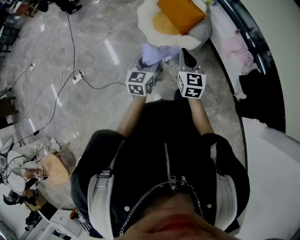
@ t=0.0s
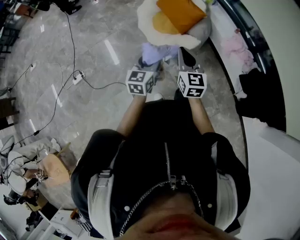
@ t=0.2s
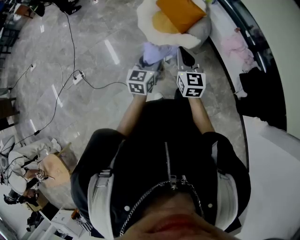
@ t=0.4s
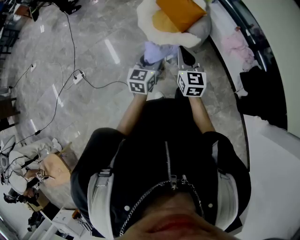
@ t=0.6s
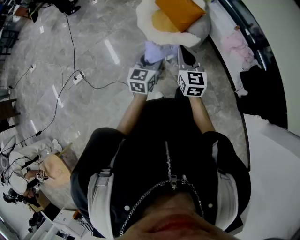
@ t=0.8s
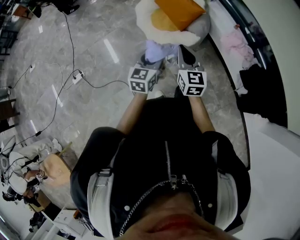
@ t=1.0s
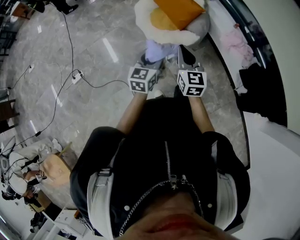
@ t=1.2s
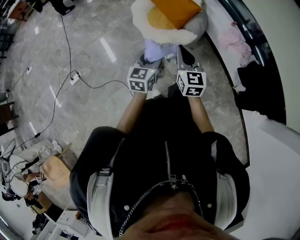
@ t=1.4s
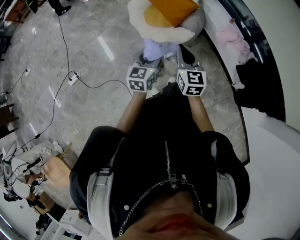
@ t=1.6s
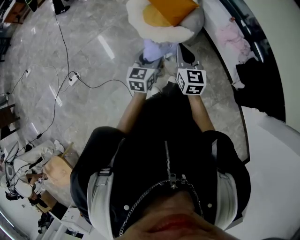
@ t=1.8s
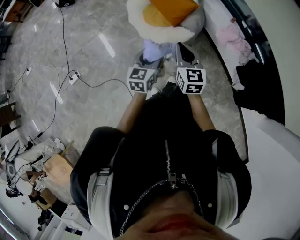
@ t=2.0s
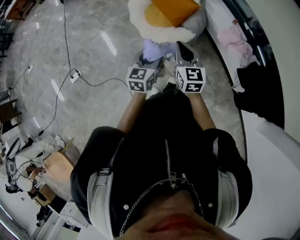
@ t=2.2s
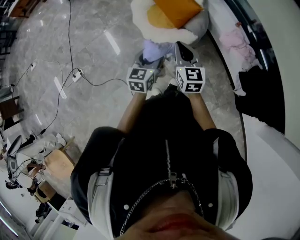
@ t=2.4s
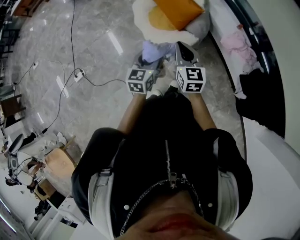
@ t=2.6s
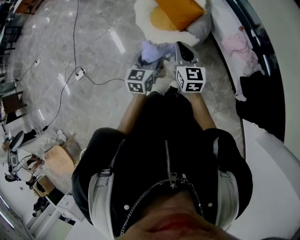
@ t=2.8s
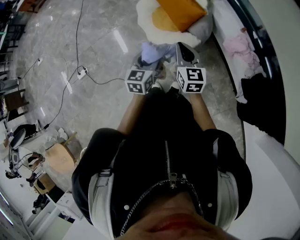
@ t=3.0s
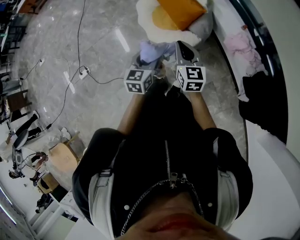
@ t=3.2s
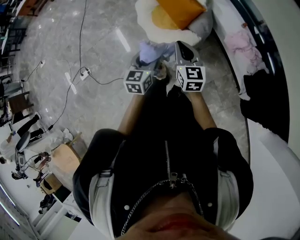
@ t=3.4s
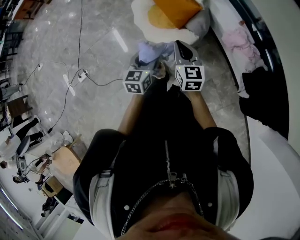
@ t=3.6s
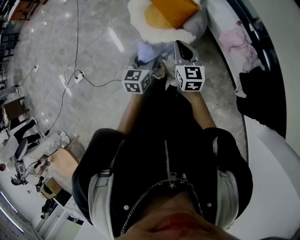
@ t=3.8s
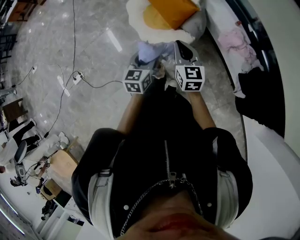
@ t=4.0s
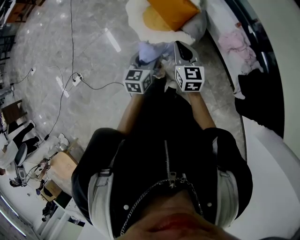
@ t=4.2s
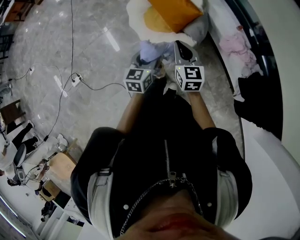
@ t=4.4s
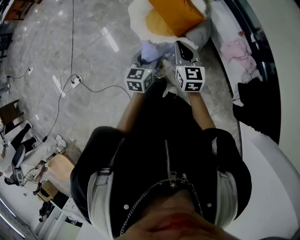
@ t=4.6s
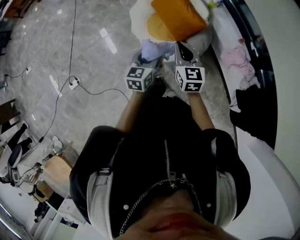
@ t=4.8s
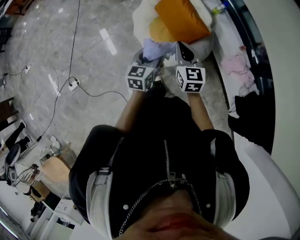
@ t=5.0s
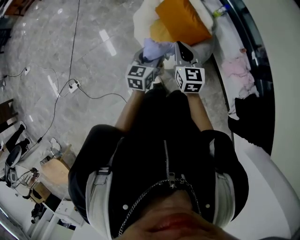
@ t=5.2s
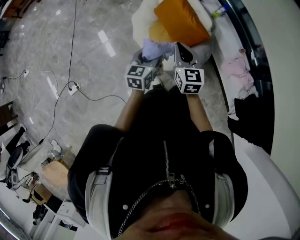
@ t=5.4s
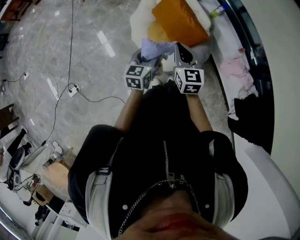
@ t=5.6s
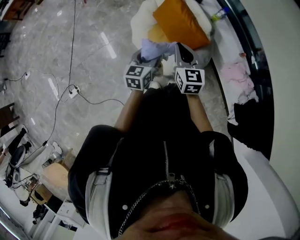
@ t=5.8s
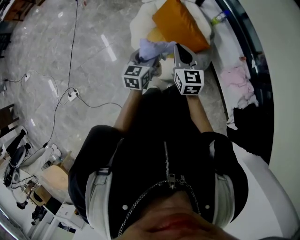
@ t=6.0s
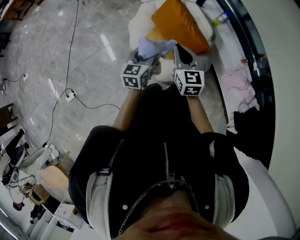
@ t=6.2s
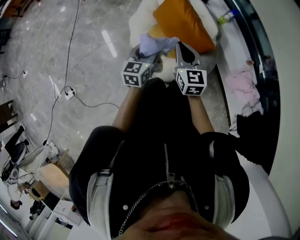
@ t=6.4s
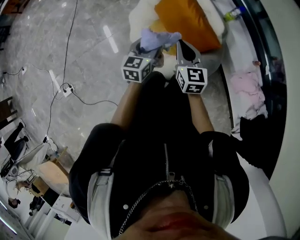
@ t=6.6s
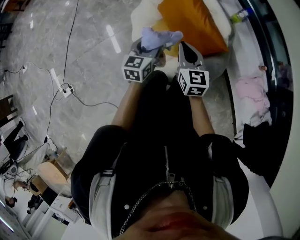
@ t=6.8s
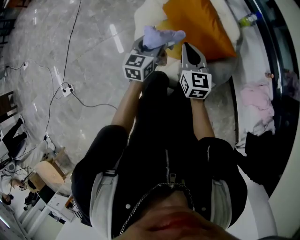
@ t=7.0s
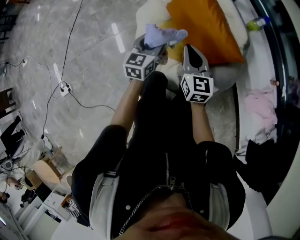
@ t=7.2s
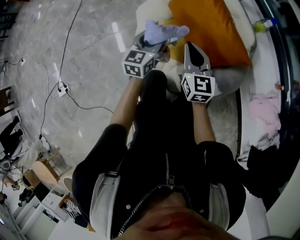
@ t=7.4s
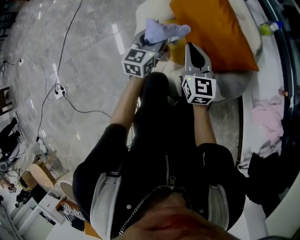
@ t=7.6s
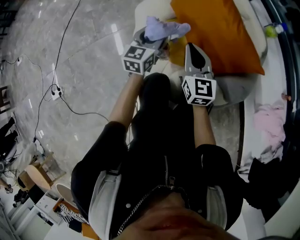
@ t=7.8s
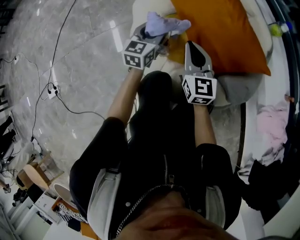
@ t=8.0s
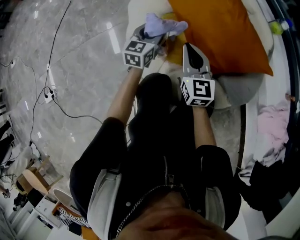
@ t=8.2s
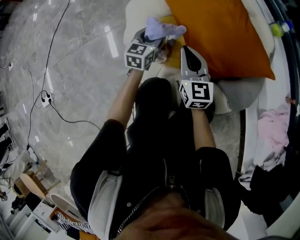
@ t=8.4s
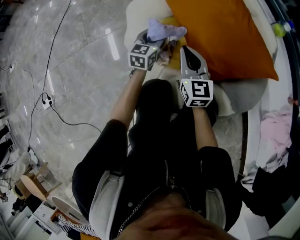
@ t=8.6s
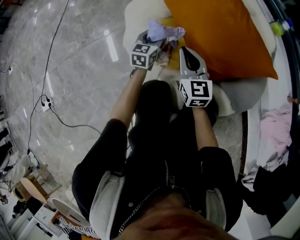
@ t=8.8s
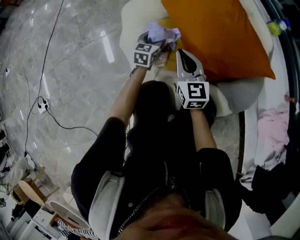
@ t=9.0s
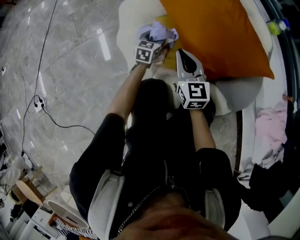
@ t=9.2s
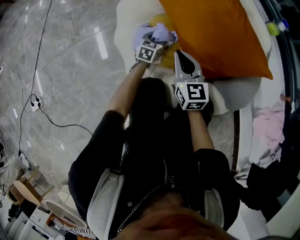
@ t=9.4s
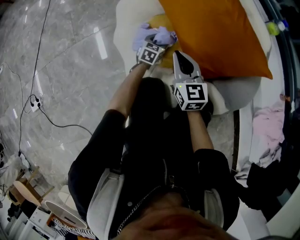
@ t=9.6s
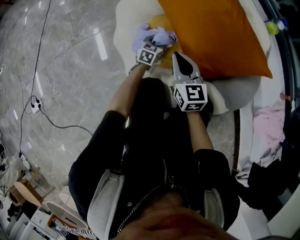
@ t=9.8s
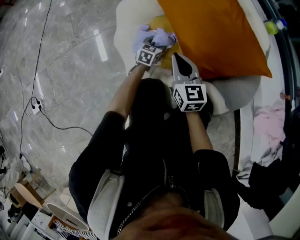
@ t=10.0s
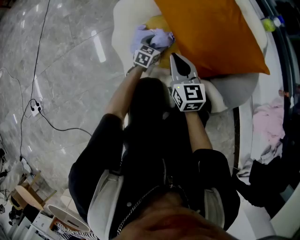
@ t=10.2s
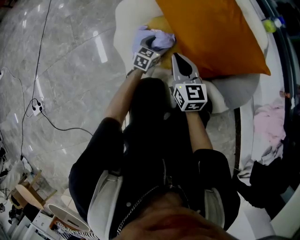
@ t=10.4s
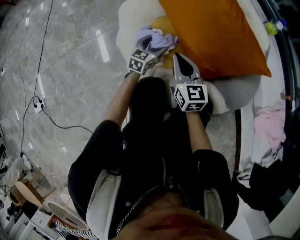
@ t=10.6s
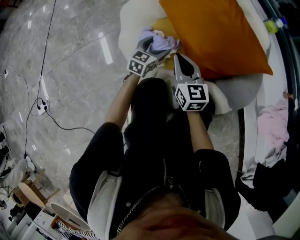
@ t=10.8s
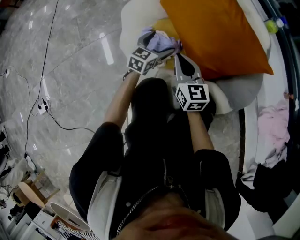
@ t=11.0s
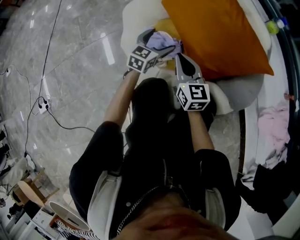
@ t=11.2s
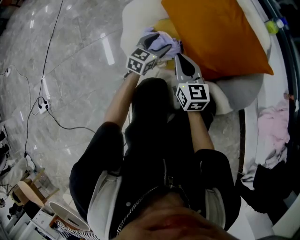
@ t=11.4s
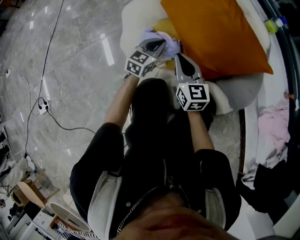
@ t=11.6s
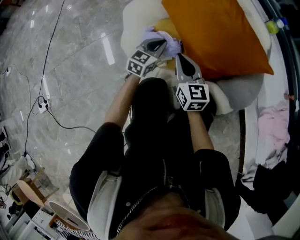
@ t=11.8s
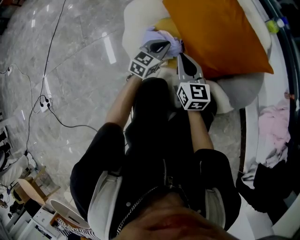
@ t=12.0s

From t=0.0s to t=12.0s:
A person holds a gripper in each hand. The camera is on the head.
From t=0.0s to t=1.6s: The grippers move only a little.
From t=1.6s to t=3.0s: Both grippers move forward and to the right, about 10 cm.
From t=3.0s to t=4.4s: The grippers both shift forward by some 10 cm.
From t=4.4s to t=6.0s: The grippers both shift forward by roughly 25 cm.
From t=6.0s to t=7.6s: The left gripper shifts roughly 40 cm downward and forward, while the right gripper travels downward by about 35 cm.
From t=7.6s to t=9.0s: The right gripper travels downward by some 15 cm. Meanwhile the left gripper goes about 25 cm downward.
From t=9.0s to t=10.4s: The left gripper changes place by roughly 5 cm.
From t=10.4s to t=12.0s: The left gripper heads upward, covering roughly 10 cm, and closes its fingers.

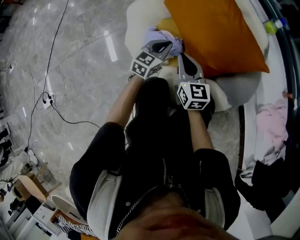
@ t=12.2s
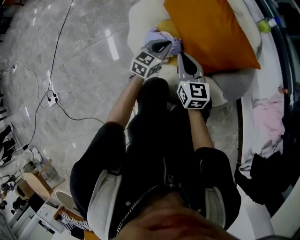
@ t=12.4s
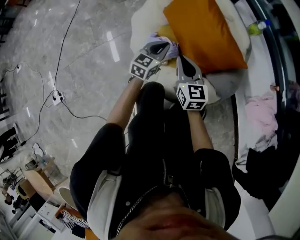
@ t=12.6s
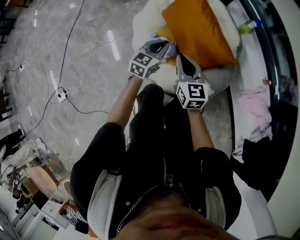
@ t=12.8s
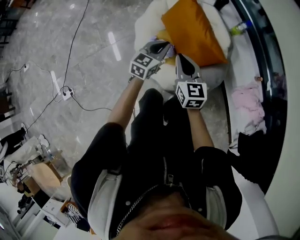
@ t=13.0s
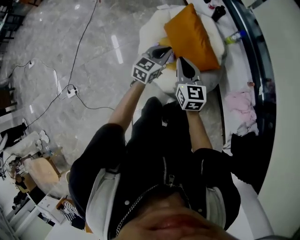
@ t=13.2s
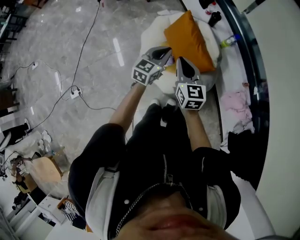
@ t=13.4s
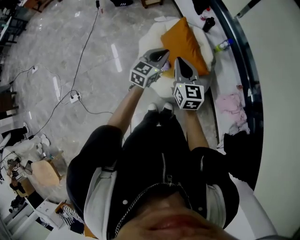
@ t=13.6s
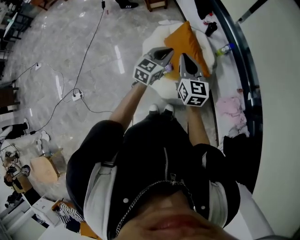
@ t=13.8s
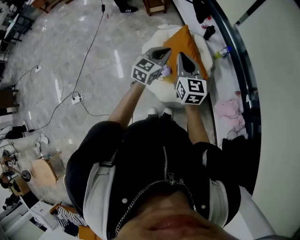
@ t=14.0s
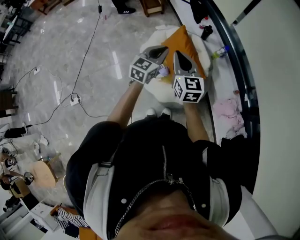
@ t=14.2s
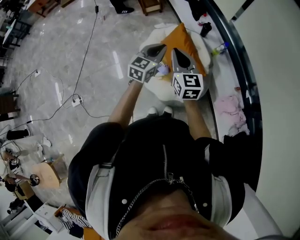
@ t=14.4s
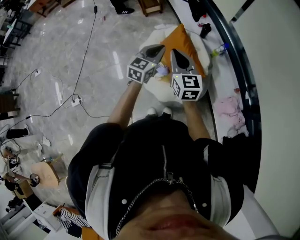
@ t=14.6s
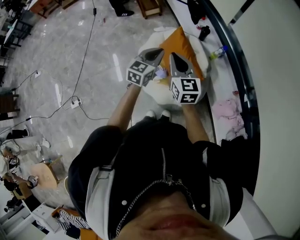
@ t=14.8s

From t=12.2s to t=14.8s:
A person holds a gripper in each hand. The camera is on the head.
From t=12.2s to t=13.4s: The two grippers go about 60 cm upward.
From t=13.4s to t=14.8s: The two grippers go approximately 10 cm upward.

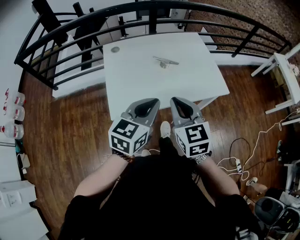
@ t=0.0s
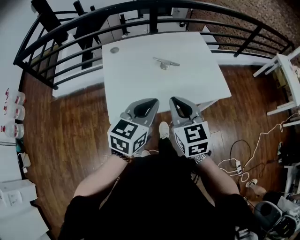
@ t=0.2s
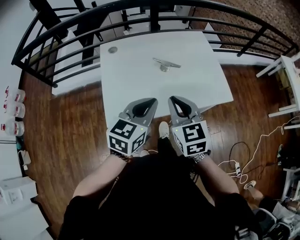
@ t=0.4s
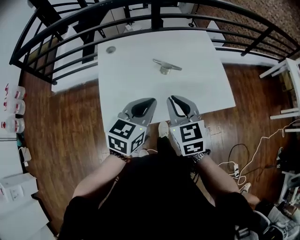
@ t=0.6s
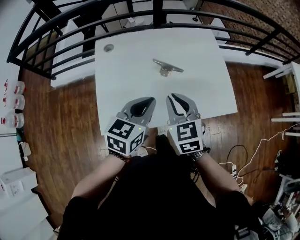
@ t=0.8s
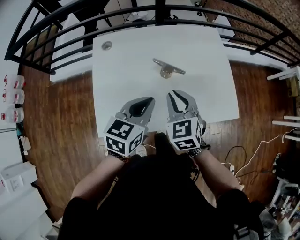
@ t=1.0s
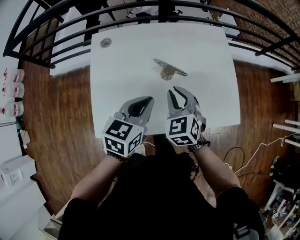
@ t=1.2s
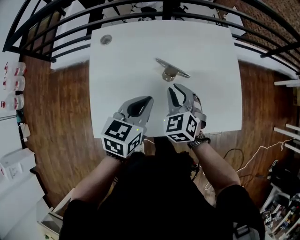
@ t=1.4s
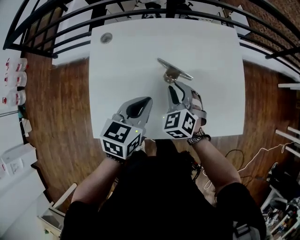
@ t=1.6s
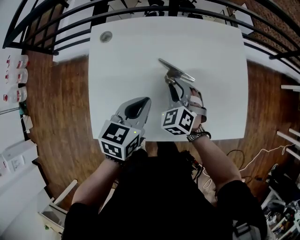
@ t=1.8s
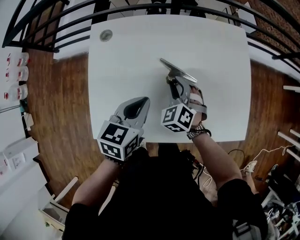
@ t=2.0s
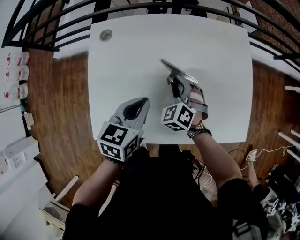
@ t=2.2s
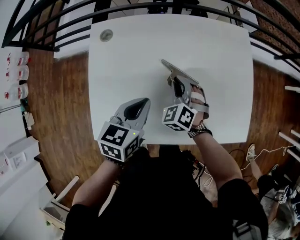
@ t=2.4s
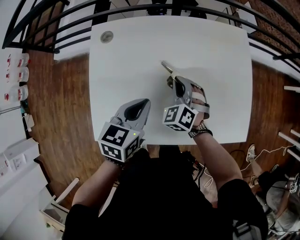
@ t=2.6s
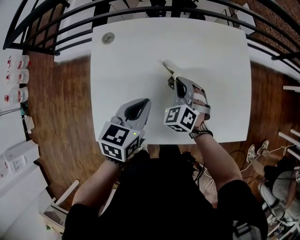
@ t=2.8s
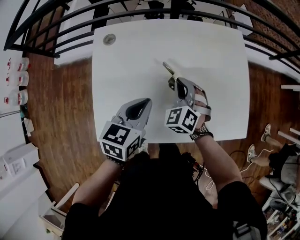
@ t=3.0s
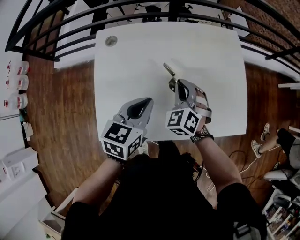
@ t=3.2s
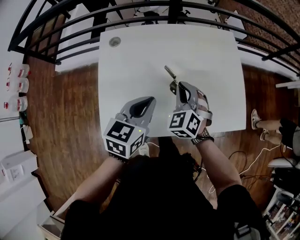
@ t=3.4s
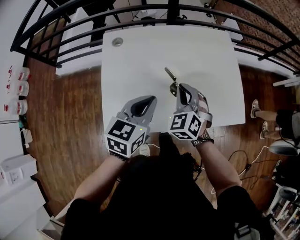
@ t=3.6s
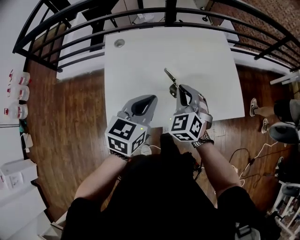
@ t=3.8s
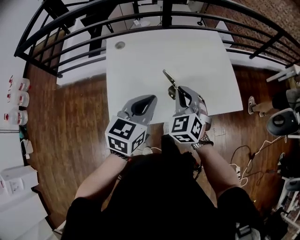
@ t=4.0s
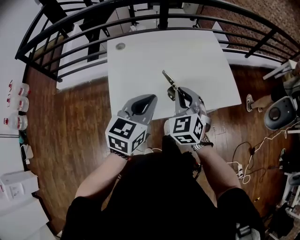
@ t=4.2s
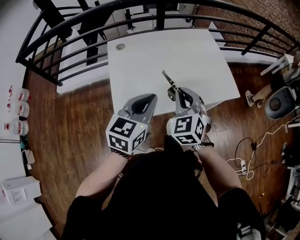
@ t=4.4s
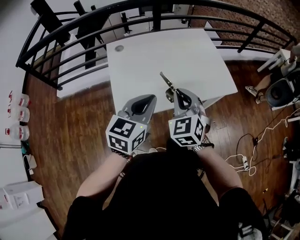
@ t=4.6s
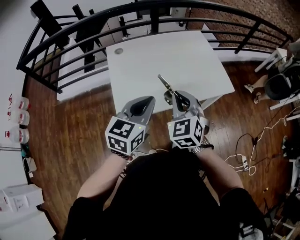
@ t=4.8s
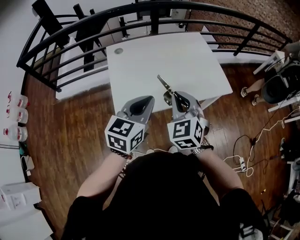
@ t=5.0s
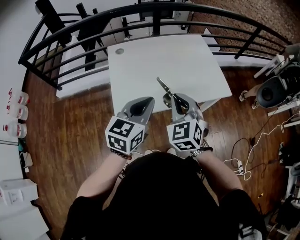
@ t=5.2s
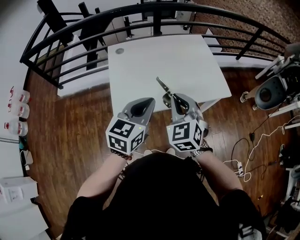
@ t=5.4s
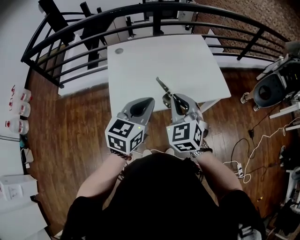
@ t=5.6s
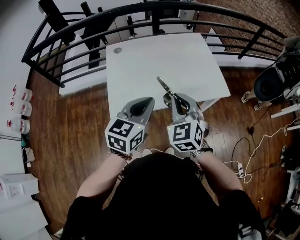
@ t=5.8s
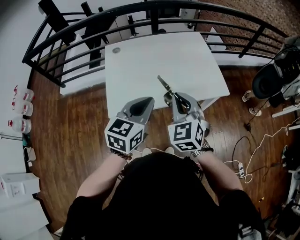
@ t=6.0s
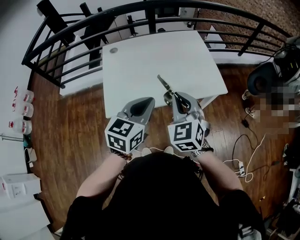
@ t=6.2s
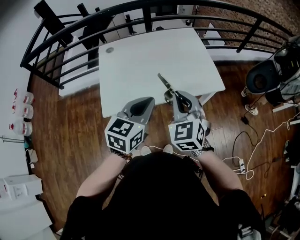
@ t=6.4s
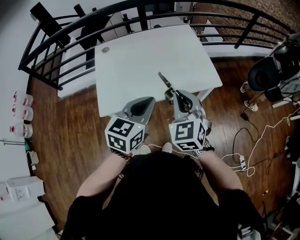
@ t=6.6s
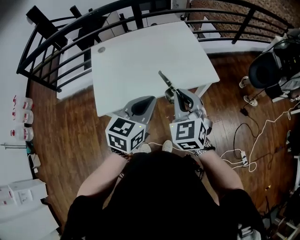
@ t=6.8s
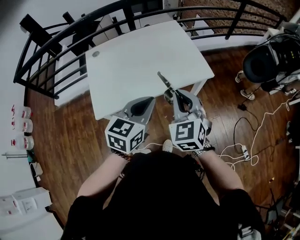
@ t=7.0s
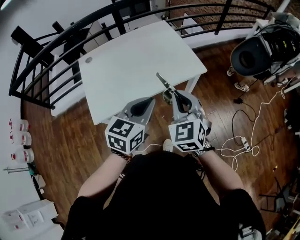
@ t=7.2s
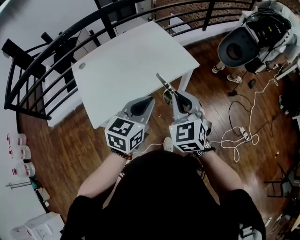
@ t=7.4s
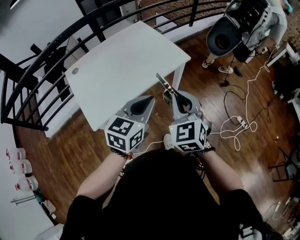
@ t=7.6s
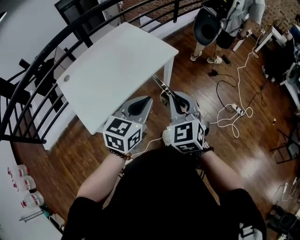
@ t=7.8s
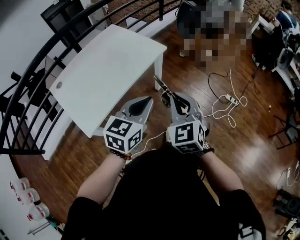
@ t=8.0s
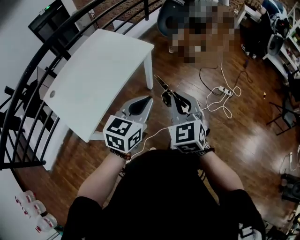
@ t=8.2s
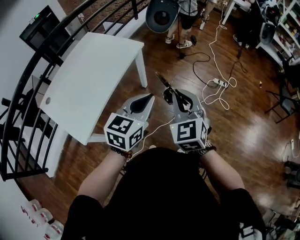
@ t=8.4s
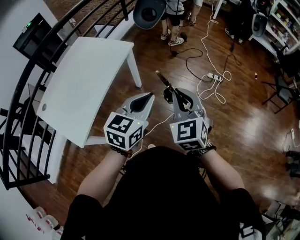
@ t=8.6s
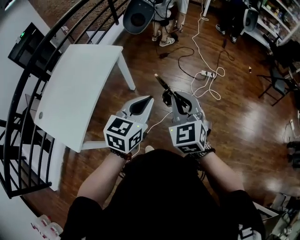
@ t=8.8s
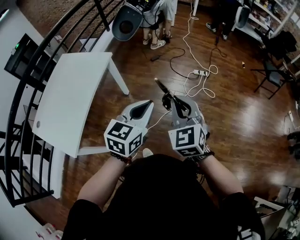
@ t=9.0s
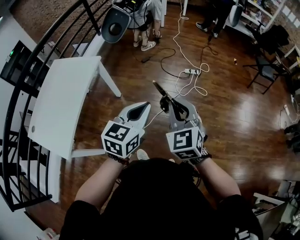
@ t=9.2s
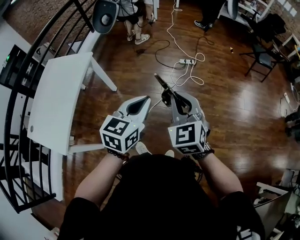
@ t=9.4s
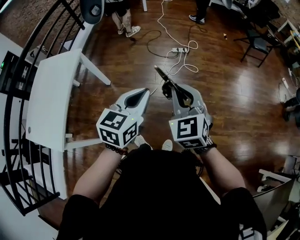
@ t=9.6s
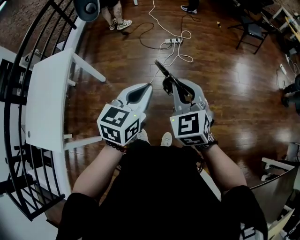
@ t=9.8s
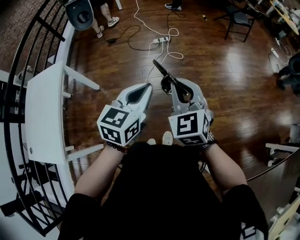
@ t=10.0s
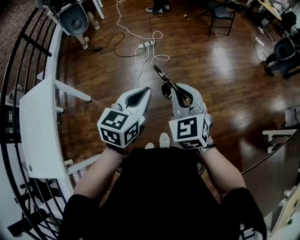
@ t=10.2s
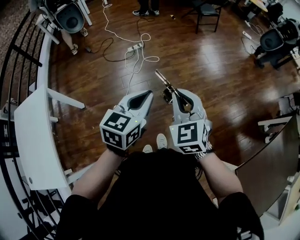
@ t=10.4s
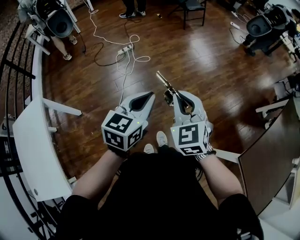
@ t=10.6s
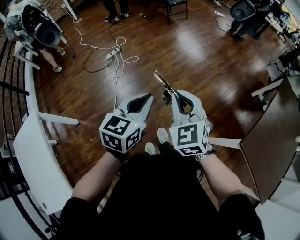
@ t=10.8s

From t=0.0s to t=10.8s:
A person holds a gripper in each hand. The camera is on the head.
From t=0.0s to t=1.6s: The two grippers go roughly 35 cm forward and downward. The right gripper rotates roughly 40 degrees; the left gripper rotates approximately 20 degrees.
From t=3.0s to t=4.6s: Both grippers move backward and upward, about 30 cm. The left gripper turns by about 30 degrees, while the right gripper rotates some 20 degrees.
From t=4.6s to t=6.2s: The two grippers go about 10 cm to the right.
From t=6.2s to t=7.8s: The right gripper changes place by approximately 15 cm, and rotates about 30 degrees; the left gripper shifts by some 10 cm, and swivels roughly 30 degrees.
From t=7.8s to t=9.2s: The right gripper ends up about 35 cm from where it was, and swivels approximately 30 degrees. Meanwhile the left gripper shifts by roughly 30 cm, and swivels roughly 30 degrees.
From t=9.2s to t=10.8s: The left gripper moves roughly 30 cm, and rotates roughly 50 degrees, while the right gripper changes place by about 30 cm, and changes its angle by about 50 degrees.
